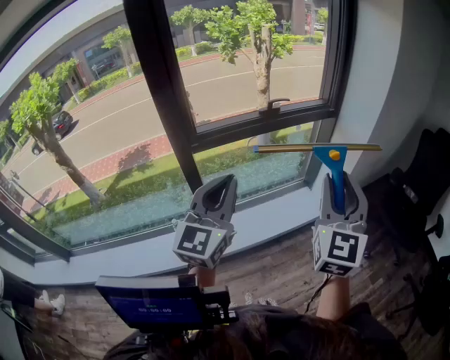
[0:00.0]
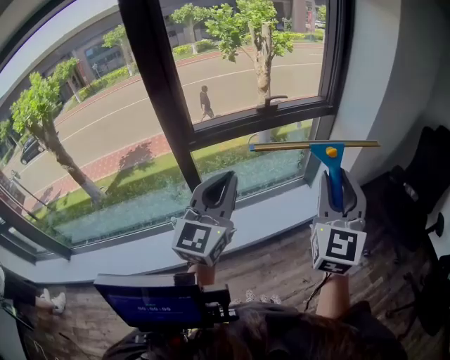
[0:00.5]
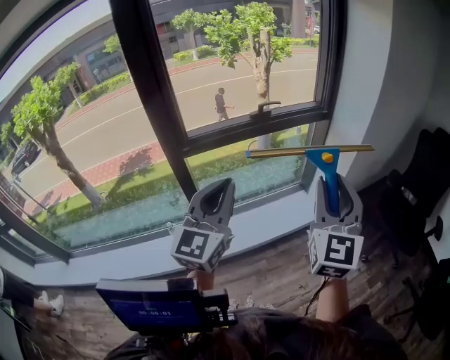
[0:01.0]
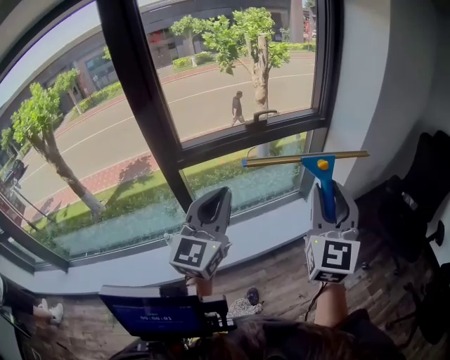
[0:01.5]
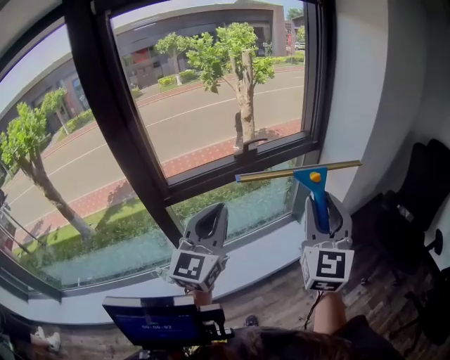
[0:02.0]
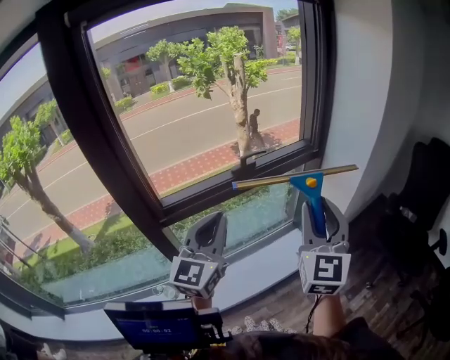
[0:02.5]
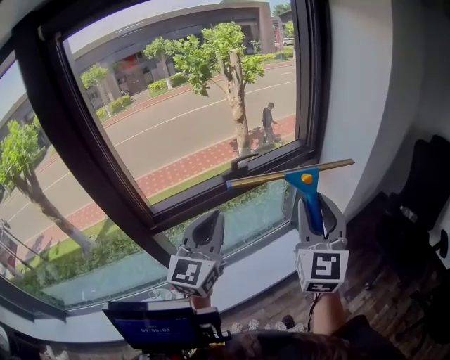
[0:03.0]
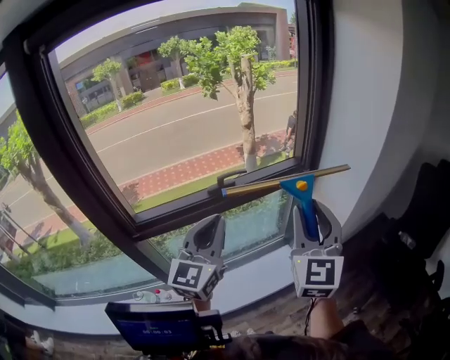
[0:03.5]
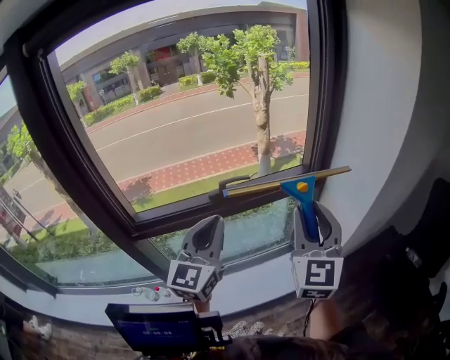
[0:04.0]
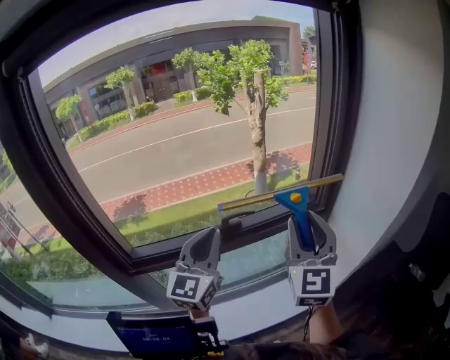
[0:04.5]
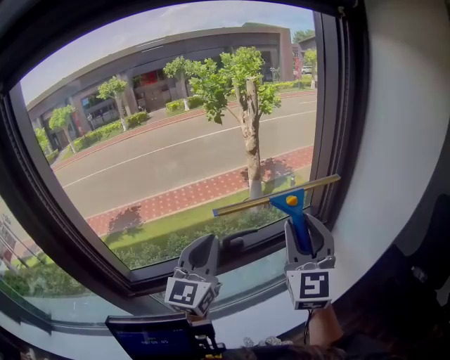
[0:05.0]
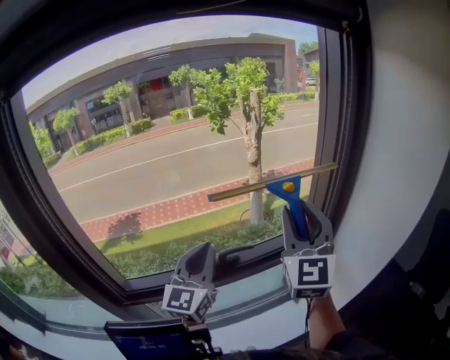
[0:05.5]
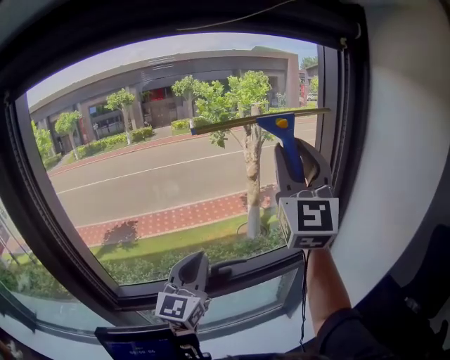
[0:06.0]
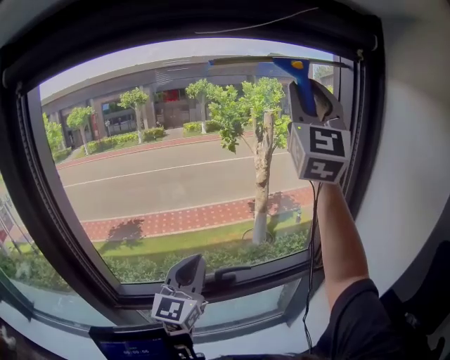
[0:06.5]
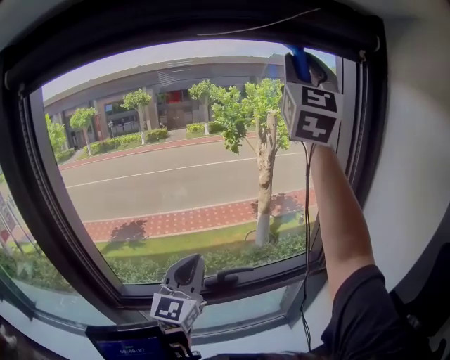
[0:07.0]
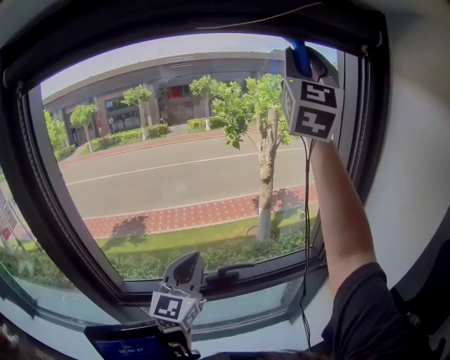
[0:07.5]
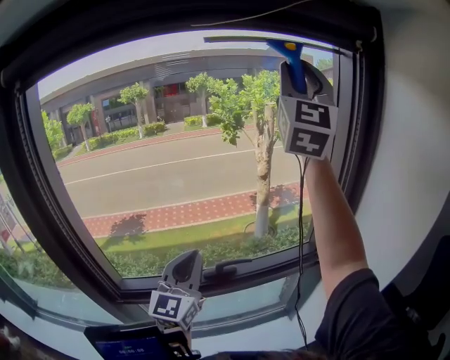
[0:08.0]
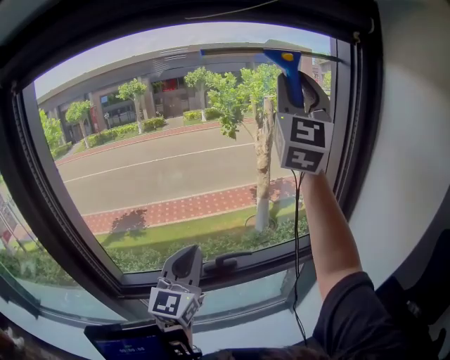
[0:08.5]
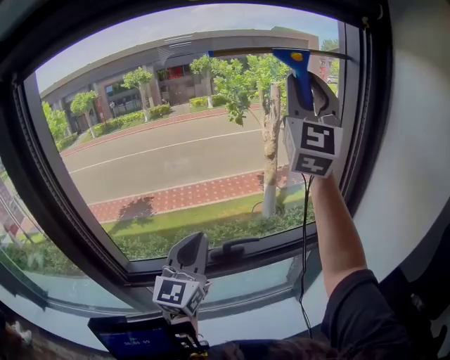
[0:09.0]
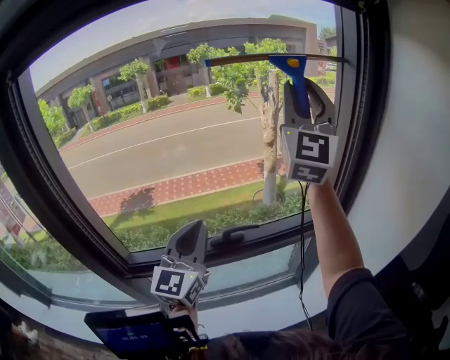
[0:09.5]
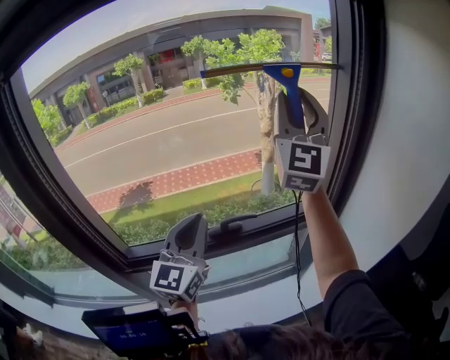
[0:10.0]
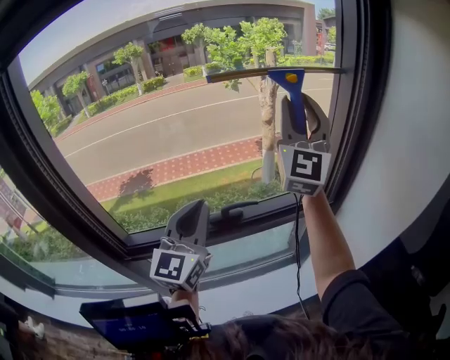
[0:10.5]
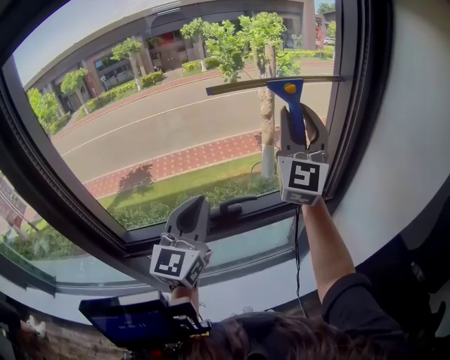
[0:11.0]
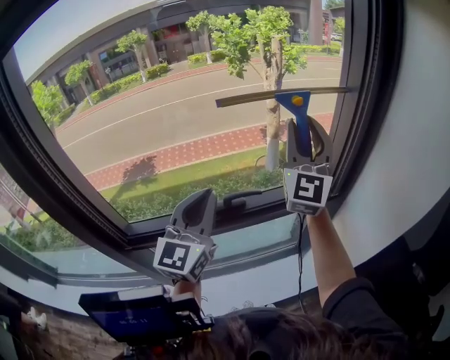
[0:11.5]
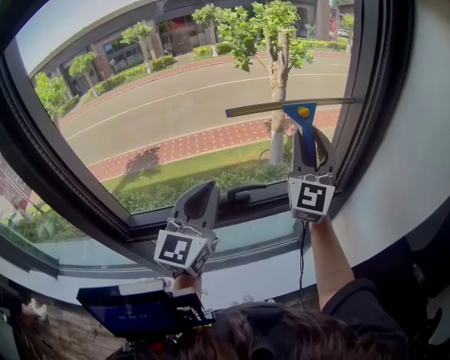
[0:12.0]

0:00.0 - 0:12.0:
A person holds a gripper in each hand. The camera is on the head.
0:00.0 - 0:02.0: The two grippers go approximately 15 cm forward.
0:02.0 - 0:04.0: Both grippers travel together forward, roughly 25 cm.
0:04.0 - 0:06.0: The right gripper shifts some 35 cm upward and forward, and changes its angle by roughly 30 degrees, while the left gripper heads forward, covering approximately 15 cm.
0:06.0 - 0:08.0: The right gripper is displaced upward by some 15 cm.
0:08.0 - 0:10.0: The right gripper goes approximately 20 cm downward.
0:10.0 - 0:12.0: The right gripper shifts some 15 cm downward.

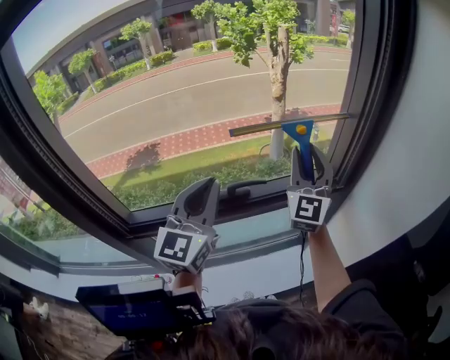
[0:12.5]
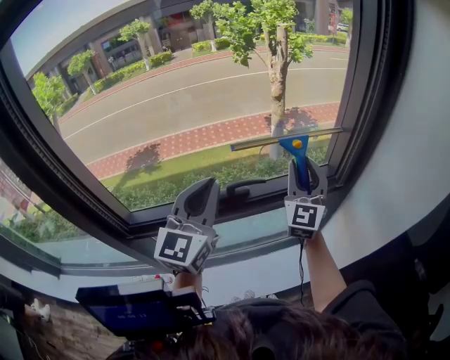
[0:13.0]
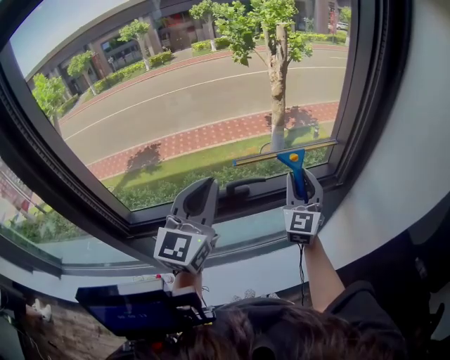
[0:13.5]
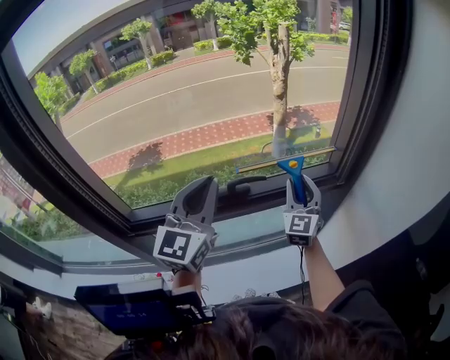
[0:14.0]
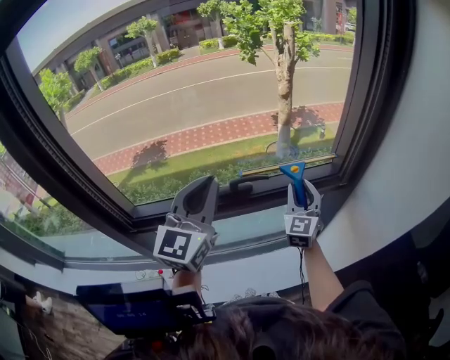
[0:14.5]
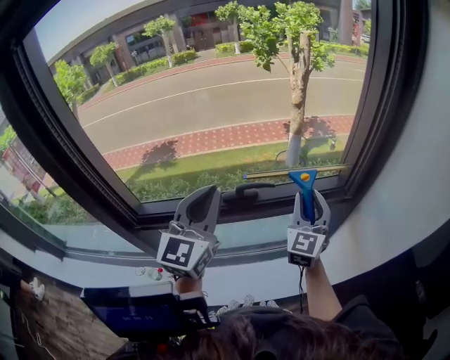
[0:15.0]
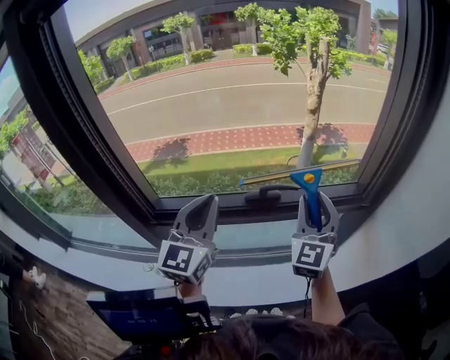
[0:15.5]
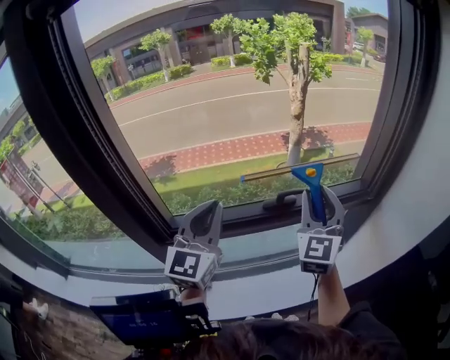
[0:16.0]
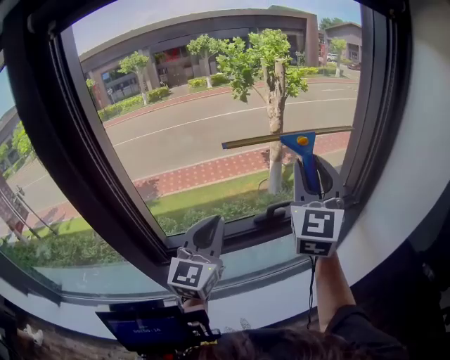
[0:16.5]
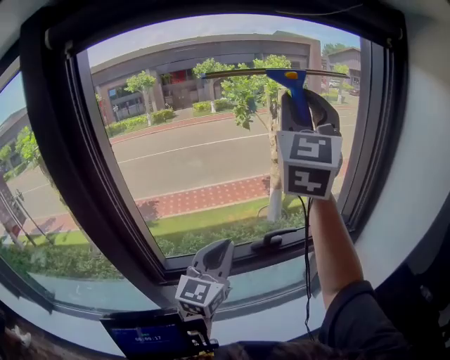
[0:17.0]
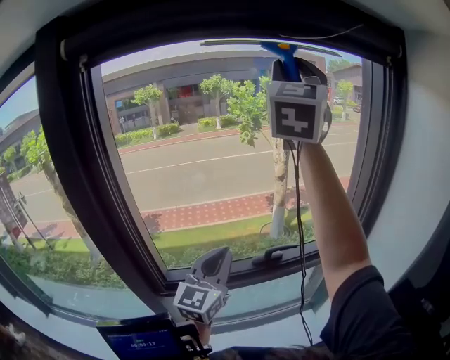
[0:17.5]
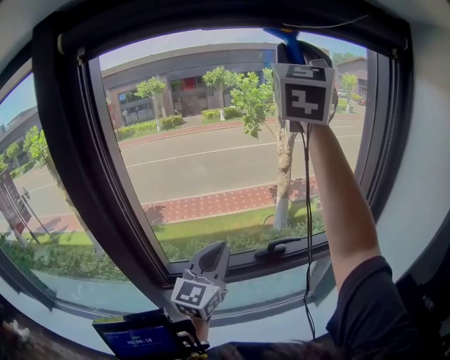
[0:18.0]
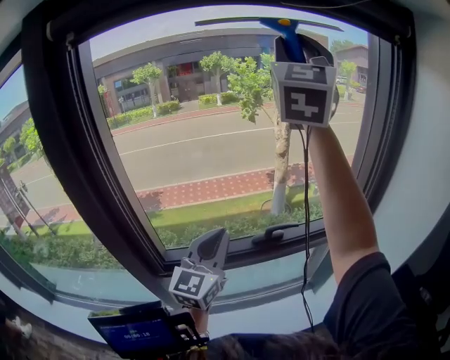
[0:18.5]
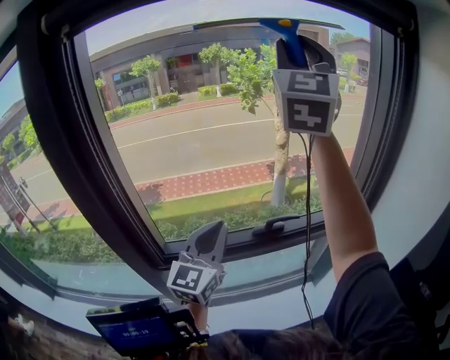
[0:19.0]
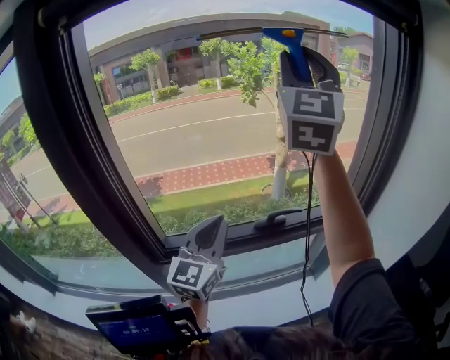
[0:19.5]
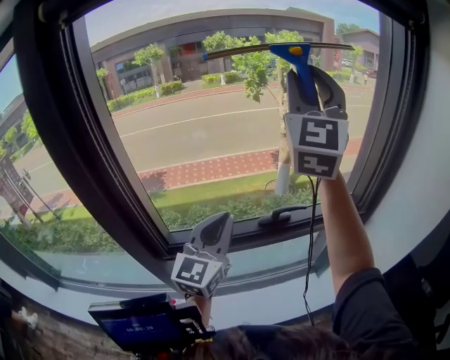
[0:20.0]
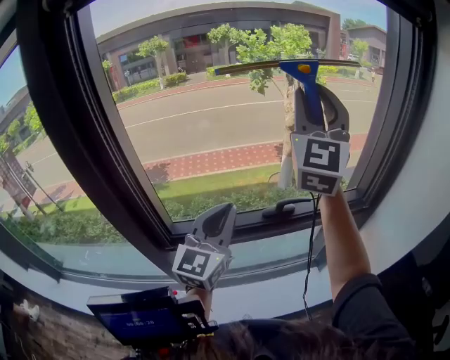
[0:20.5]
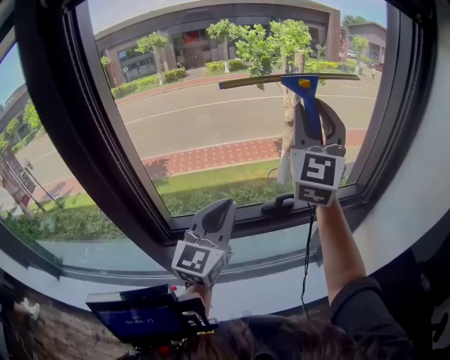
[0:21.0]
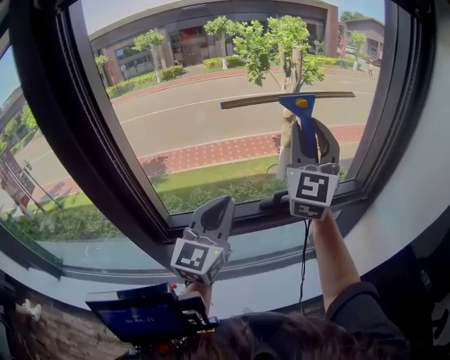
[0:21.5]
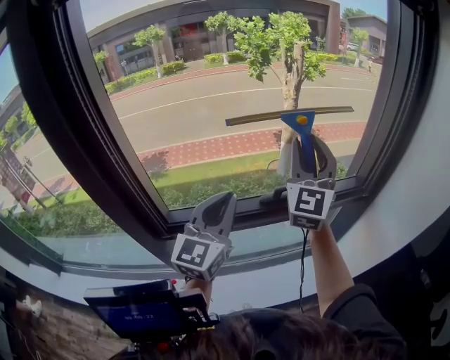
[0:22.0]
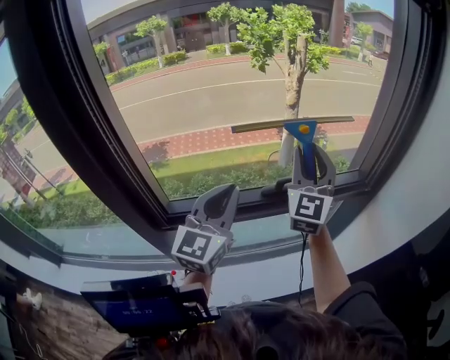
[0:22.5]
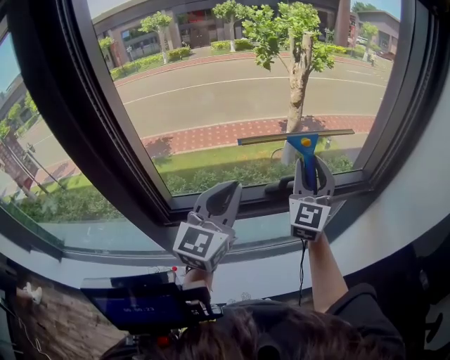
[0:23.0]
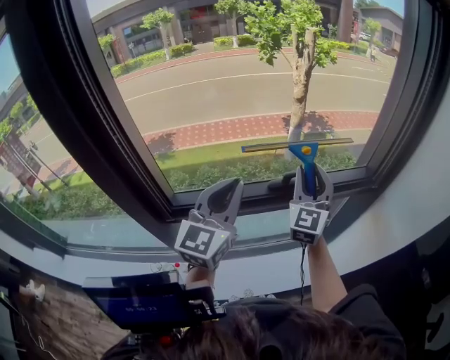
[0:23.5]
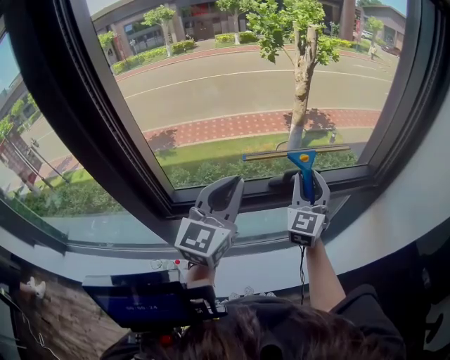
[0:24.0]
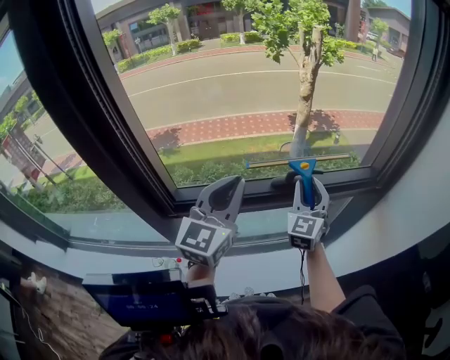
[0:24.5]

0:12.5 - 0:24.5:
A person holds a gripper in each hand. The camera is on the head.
0:12.5 - 0:14.5: The right gripper shifts some 15 cm downward.
0:14.5 - 0:16.5: The right gripper heads upward and to the left, covering about 30 cm; the left gripper shifts some 10 cm to the left.
0:16.5 - 0:18.5: The right gripper is displaced upward by some 30 cm, and changes its angle by some 20 degrees.
0:18.5 - 0:20.5: The right gripper moves downward, approximately 20 cm.
0:20.5 - 0:22.5: The right gripper goes approximately 20 cm downward.
0:22.5 - 0:24.5: The right gripper shifts roughly 15 cm downward.

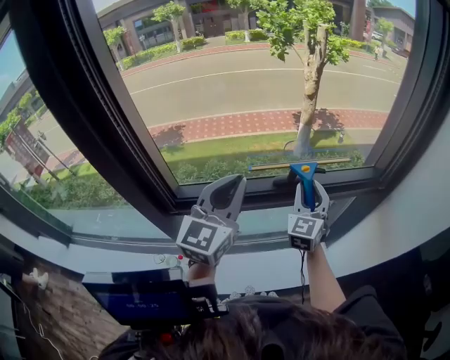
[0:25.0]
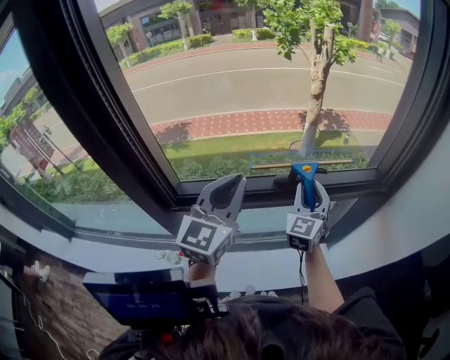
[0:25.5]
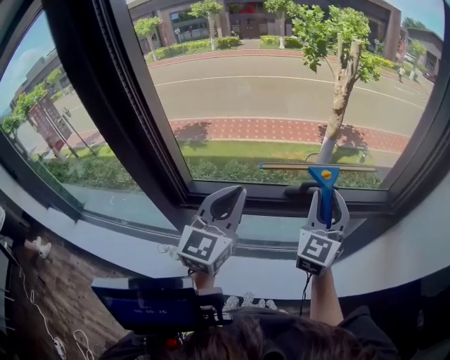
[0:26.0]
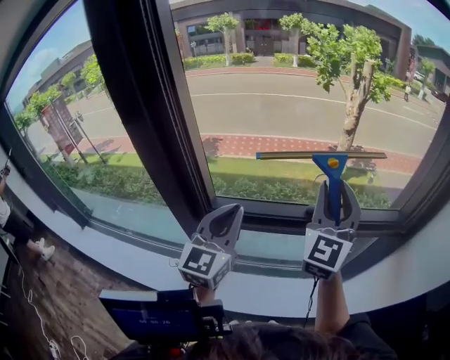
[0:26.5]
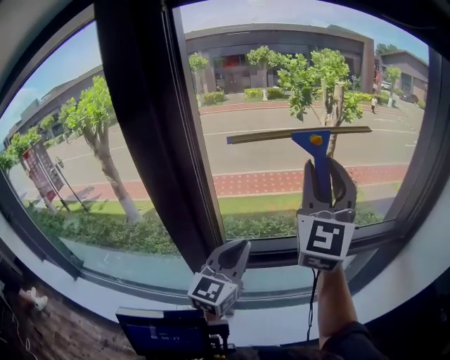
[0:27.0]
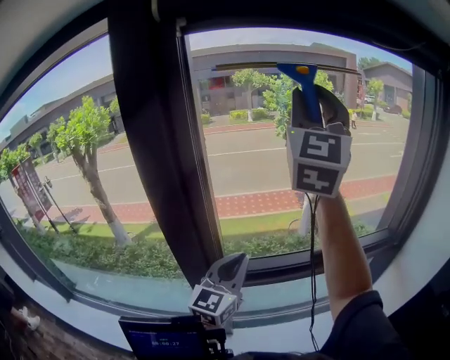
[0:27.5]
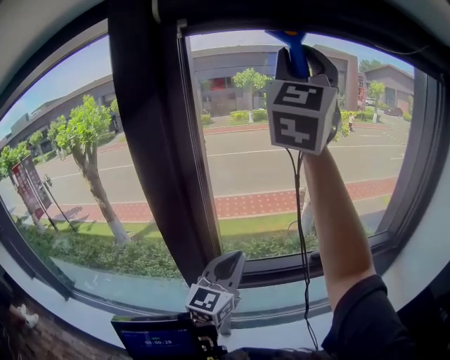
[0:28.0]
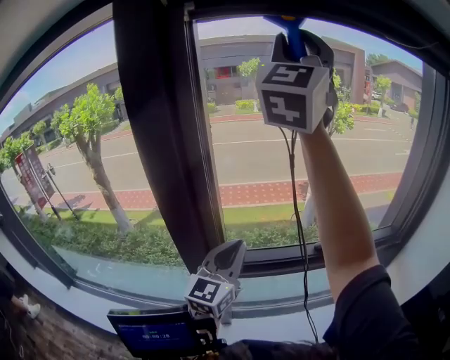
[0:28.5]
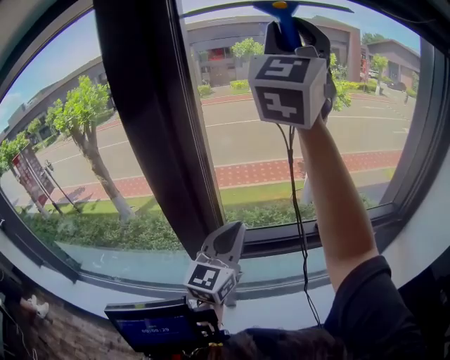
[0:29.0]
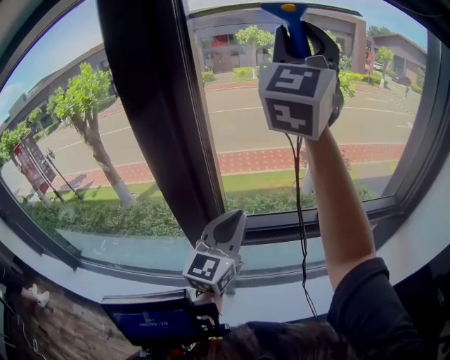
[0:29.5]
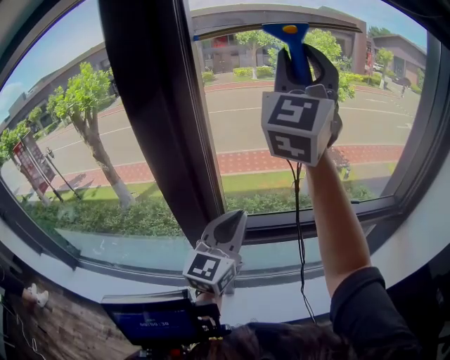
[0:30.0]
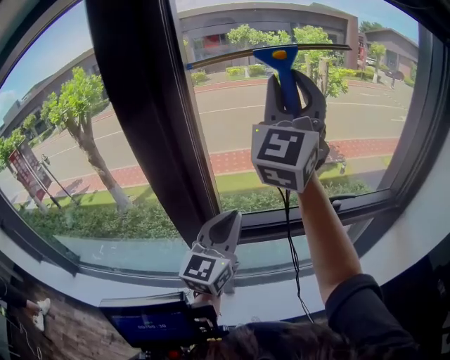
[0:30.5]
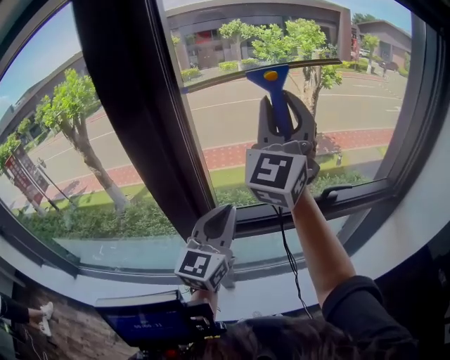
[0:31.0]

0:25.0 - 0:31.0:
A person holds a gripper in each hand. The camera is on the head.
0:25.0 - 0:27.0: The left gripper goes about 15 cm to the left. Meanwhile the right gripper travels upward and to the left by some 35 cm, and turns by roughly 30 degrees.
0:27.0 - 0:29.0: The right gripper is displaced upward by about 25 cm.
0:29.0 - 0:31.0: The right gripper heads downward, covering about 20 cm.
